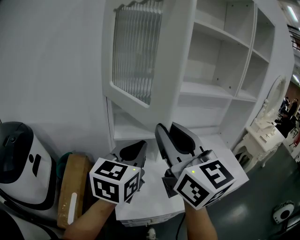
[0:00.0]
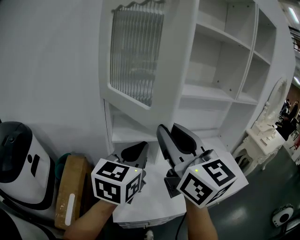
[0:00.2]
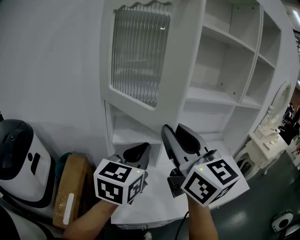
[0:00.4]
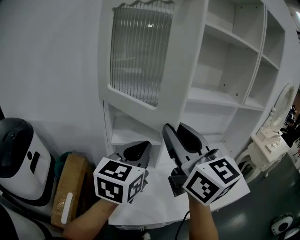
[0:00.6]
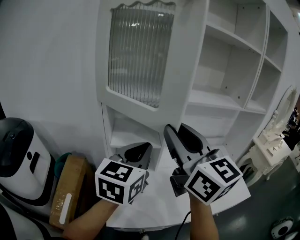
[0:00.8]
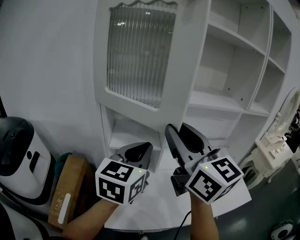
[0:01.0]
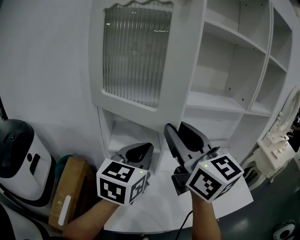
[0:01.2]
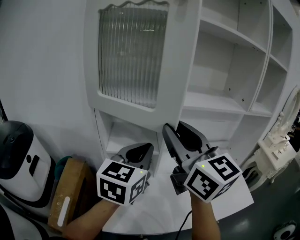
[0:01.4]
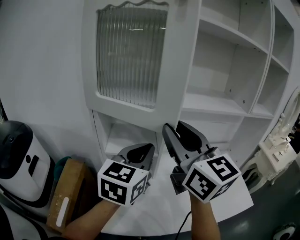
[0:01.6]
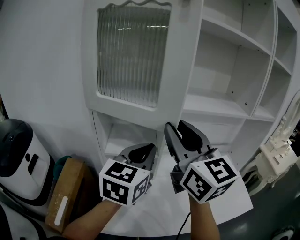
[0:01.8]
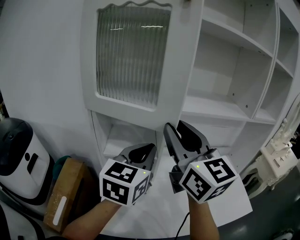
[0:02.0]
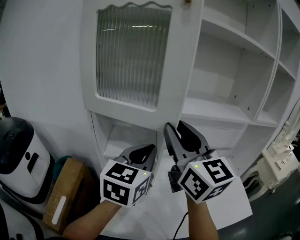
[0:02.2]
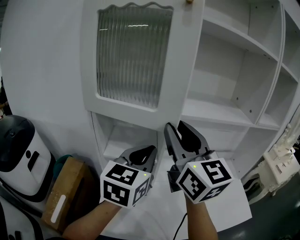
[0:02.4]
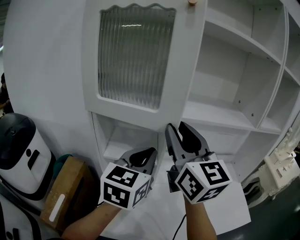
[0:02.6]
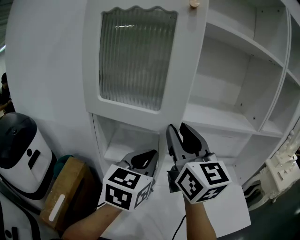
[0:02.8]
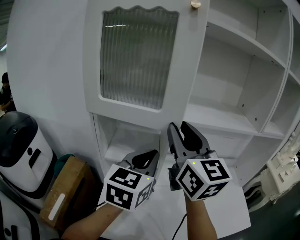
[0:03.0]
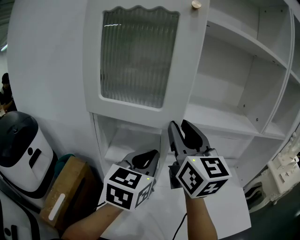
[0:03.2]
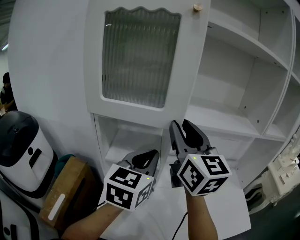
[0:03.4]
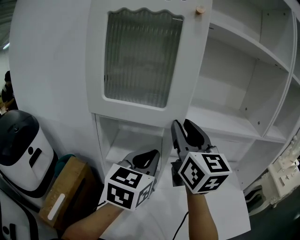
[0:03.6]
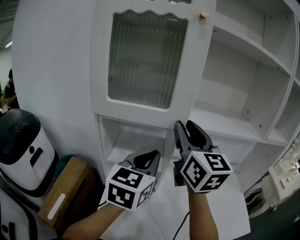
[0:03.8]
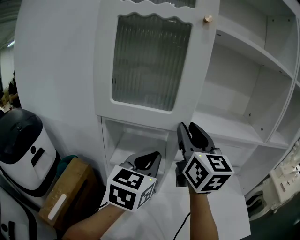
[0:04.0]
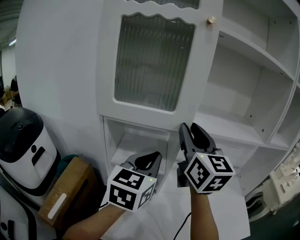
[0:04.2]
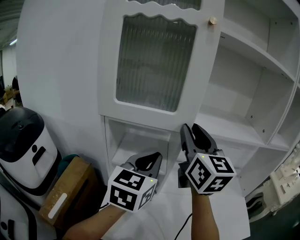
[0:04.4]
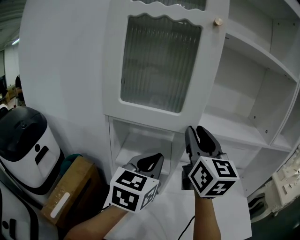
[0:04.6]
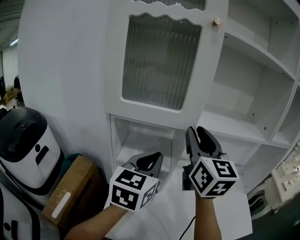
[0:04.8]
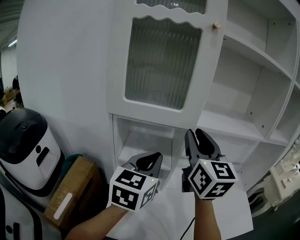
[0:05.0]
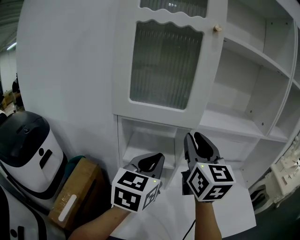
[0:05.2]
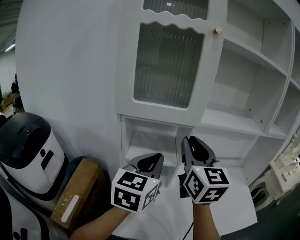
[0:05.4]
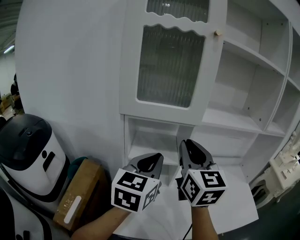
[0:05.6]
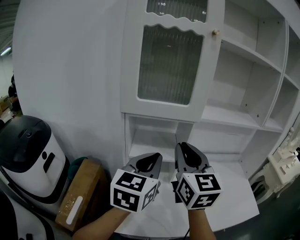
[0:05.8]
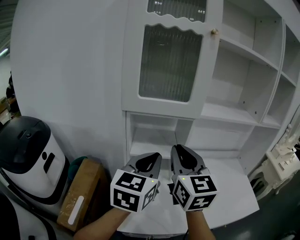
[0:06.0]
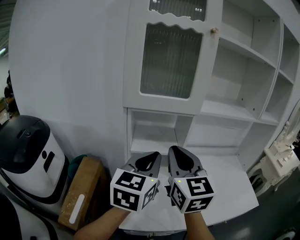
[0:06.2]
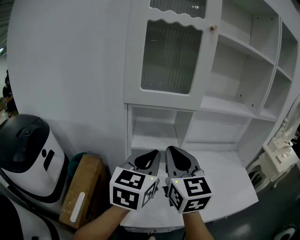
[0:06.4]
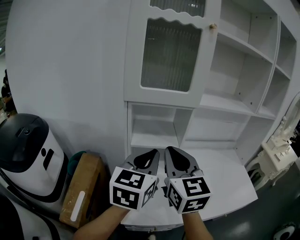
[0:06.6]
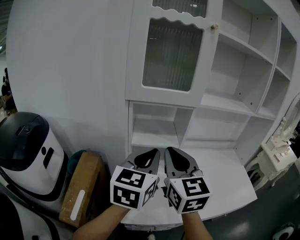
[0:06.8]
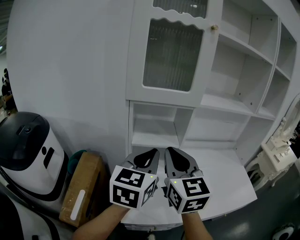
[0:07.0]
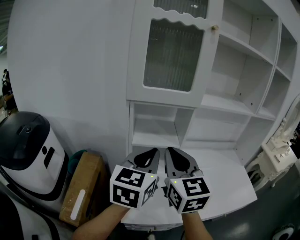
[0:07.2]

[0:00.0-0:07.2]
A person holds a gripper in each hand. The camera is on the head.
0:00.0 to 0:01.4: Both grippers travel together forward and to the right, approximately 10 cm.
0:01.4 to 0:02.8: The left gripper ends up about 5 cm from where it was. Meanwhile the right gripper moves forward, roughly 10 cm.
0:02.8 to 0:04.4: The grippers make only small movements.
0:04.4 to 0:05.8: The right gripper goes some 15 cm backward, to the left and downward; the left gripper travels backward and to the left by approximately 10 cm.
0:05.8 to 0:07.2: The right gripper moves backward, roughly 5 cm, while the left gripper changes place by about 5 cm.

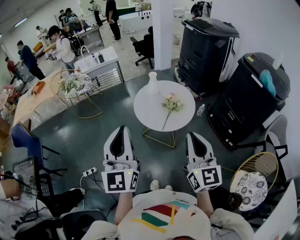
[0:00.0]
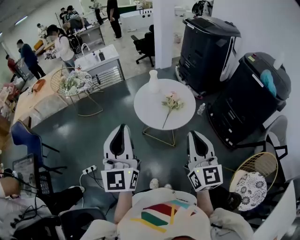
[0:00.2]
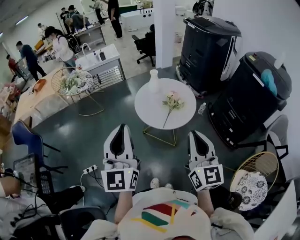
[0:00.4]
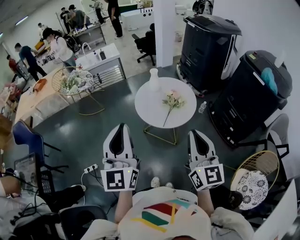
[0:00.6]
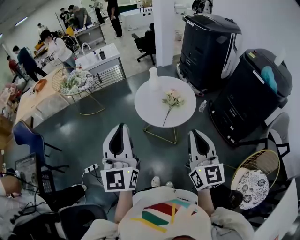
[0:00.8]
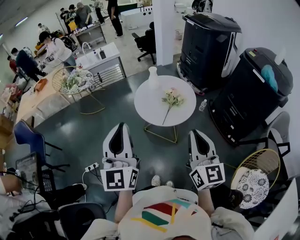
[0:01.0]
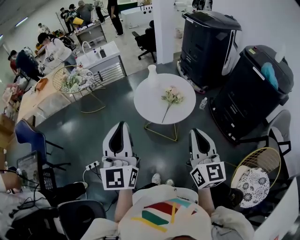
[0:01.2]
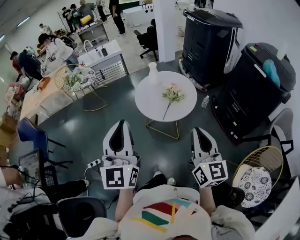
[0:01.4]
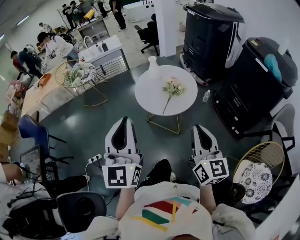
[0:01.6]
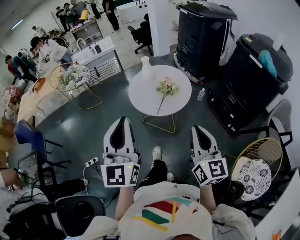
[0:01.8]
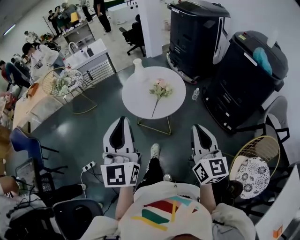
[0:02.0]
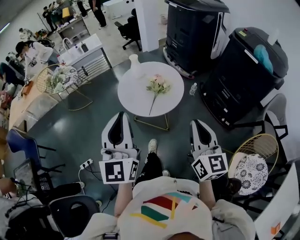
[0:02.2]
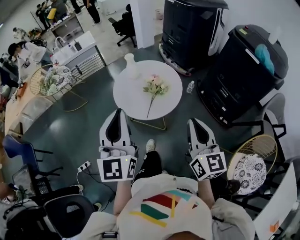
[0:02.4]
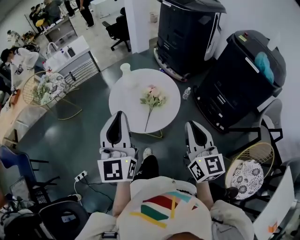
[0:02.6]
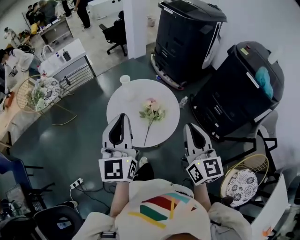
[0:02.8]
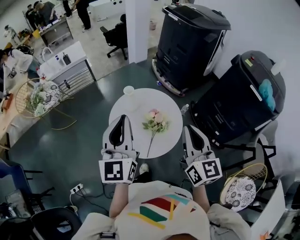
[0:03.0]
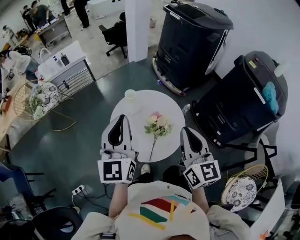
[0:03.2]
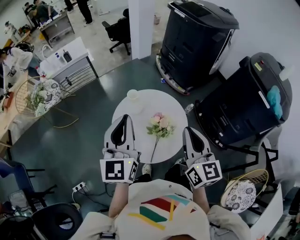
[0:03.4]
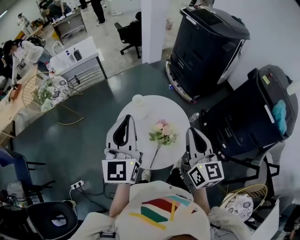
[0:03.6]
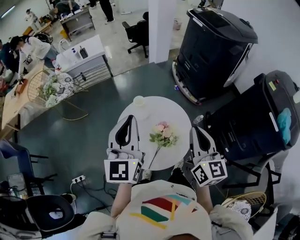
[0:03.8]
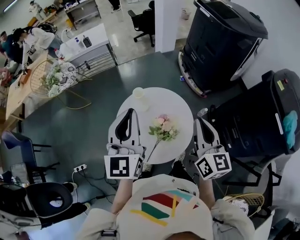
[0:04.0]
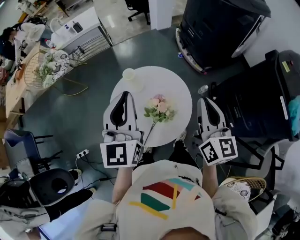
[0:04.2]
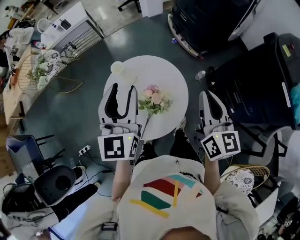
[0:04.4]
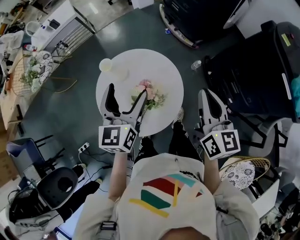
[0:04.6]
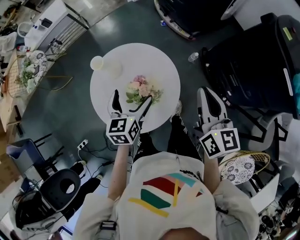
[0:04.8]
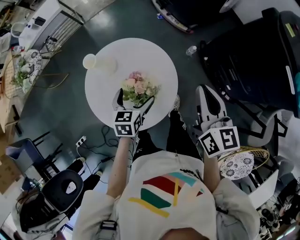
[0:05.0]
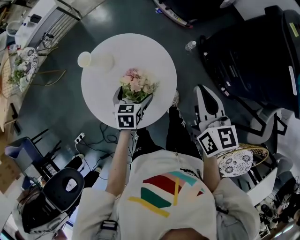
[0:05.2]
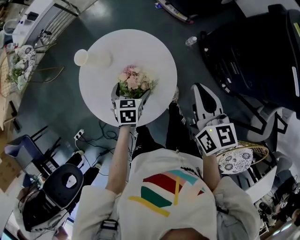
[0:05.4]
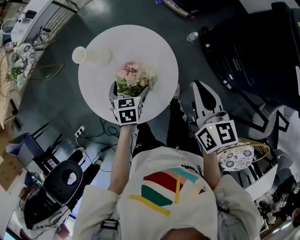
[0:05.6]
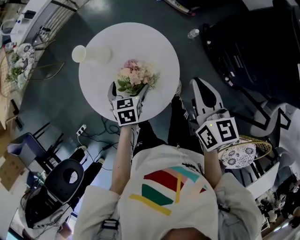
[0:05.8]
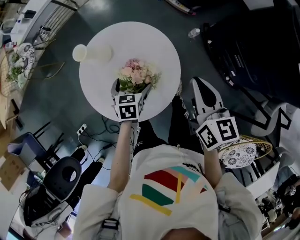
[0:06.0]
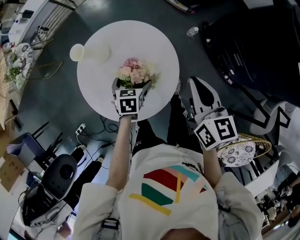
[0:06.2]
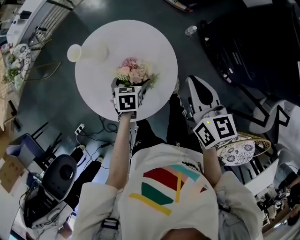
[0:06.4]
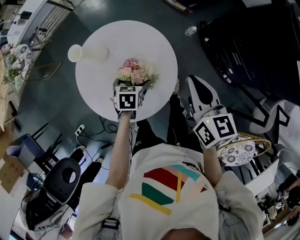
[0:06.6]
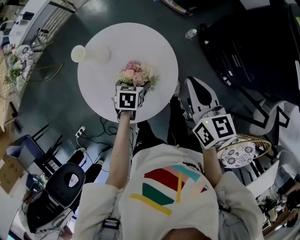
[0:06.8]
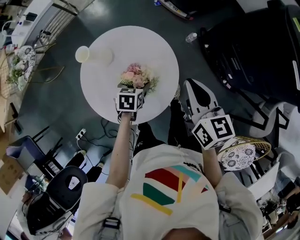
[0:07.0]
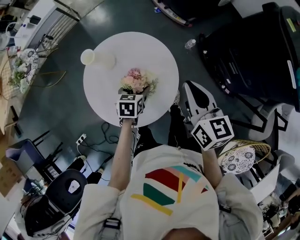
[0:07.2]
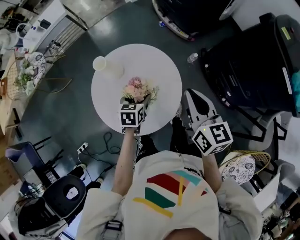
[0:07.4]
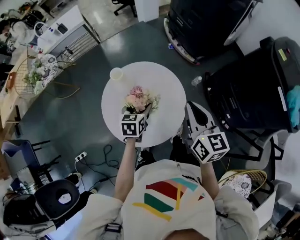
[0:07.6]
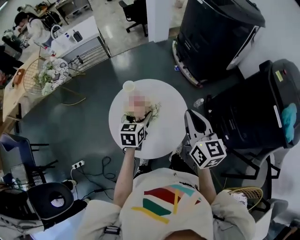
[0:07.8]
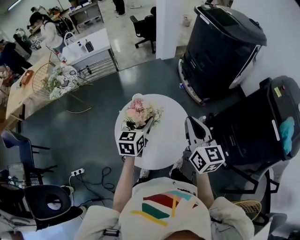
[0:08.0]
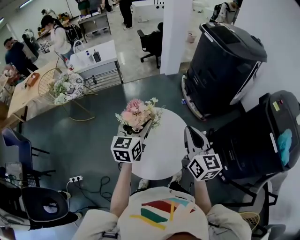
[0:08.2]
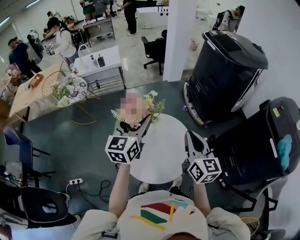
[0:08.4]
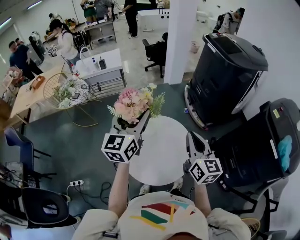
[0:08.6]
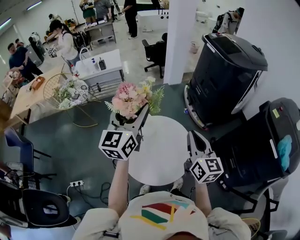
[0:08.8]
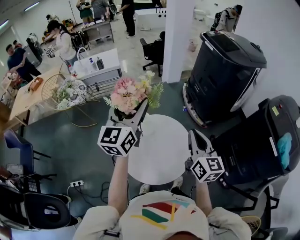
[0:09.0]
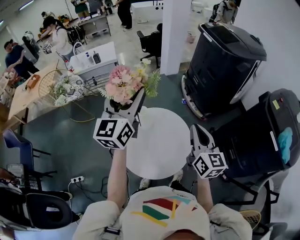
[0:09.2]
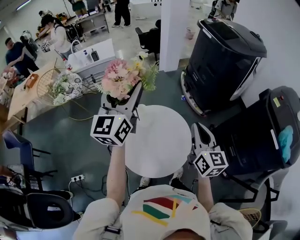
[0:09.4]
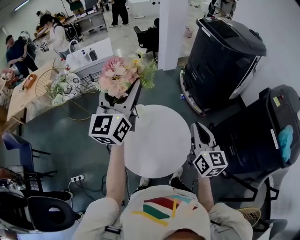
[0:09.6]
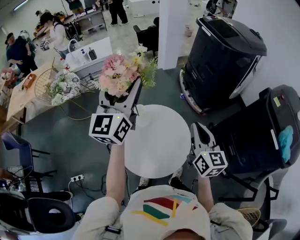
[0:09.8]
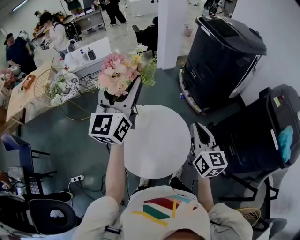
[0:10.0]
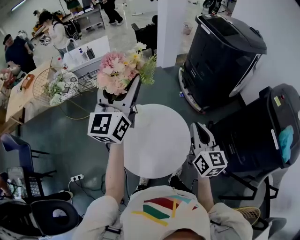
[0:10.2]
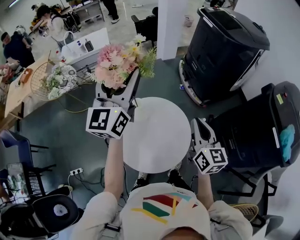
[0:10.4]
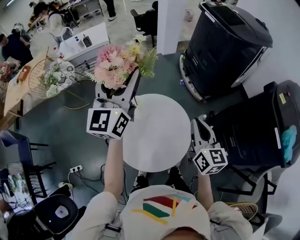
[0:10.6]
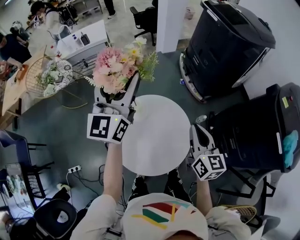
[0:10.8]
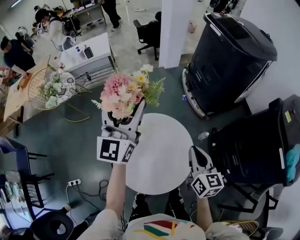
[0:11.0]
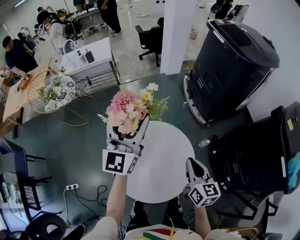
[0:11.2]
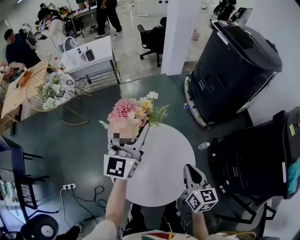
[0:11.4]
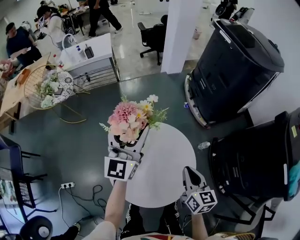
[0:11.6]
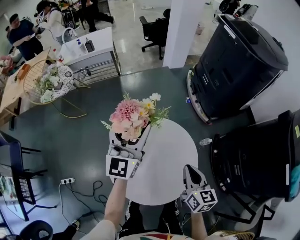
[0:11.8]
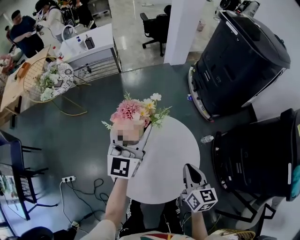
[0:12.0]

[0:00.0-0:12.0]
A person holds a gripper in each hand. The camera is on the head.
0:00.0 to 0:01.6: Both grippers move to the right, roughly 5 cm.
0:01.6 to 0:03.0: The grippers both shift forward by about 30 cm.
0:03.0 to 0:04.4: The grippers both shift forward, to the right and downward by roughly 20 cm.
0:04.4 to 0:06.0: The left gripper shifts about 35 cm downward, tips its fingers downward by about 50 degrees, and opens up. The right gripper shifts about 15 cm downward.
0:06.0 to 0:07.6: The right gripper is displaced upward and to the left by some 10 cm, while the left gripper goes approximately 10 cm upward, and closes.
0:07.6 to 0:09.0: The left gripper shifts roughly 40 cm upward, and tilts its fingers about 50 degrees upward, while the right gripper heads upward and to the left, covering some 10 cm.
0:09.0 to 0:10.4: The left gripper goes some 5 cm forward. Meanwhile the right gripper shifts by roughly 5 cm.
0:10.4 to 0:12.0: The grippers both shift downward by some 20 cm.

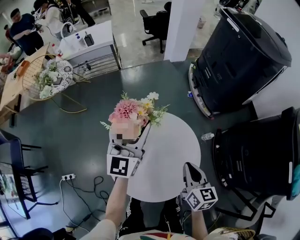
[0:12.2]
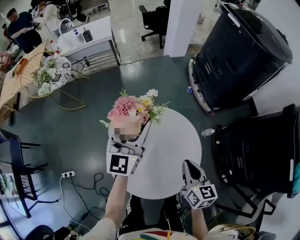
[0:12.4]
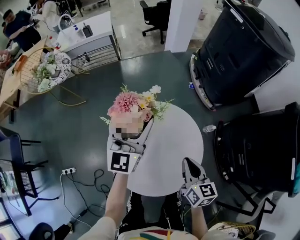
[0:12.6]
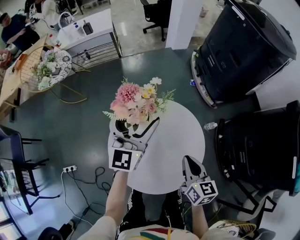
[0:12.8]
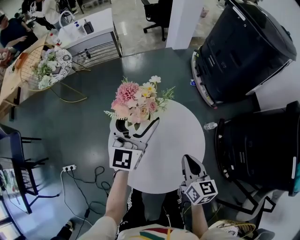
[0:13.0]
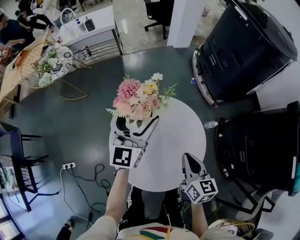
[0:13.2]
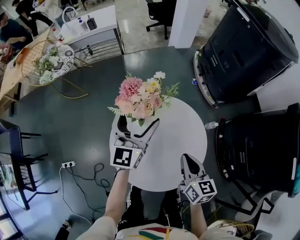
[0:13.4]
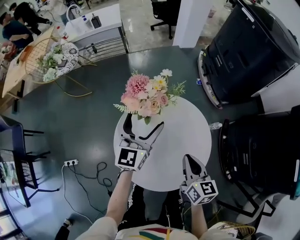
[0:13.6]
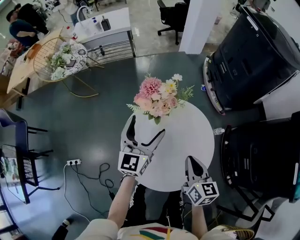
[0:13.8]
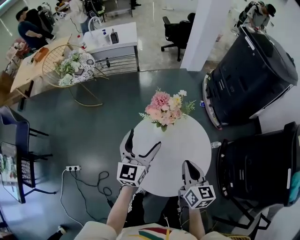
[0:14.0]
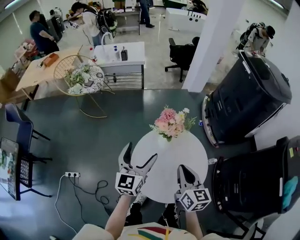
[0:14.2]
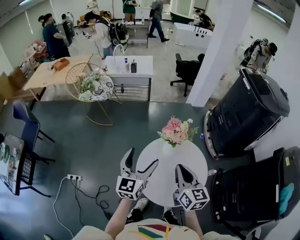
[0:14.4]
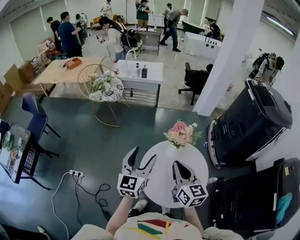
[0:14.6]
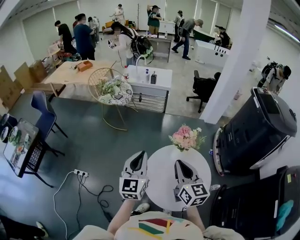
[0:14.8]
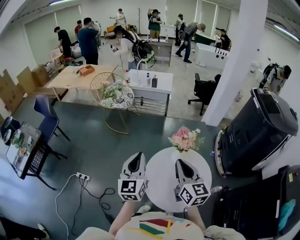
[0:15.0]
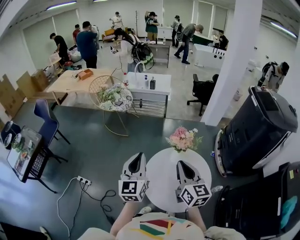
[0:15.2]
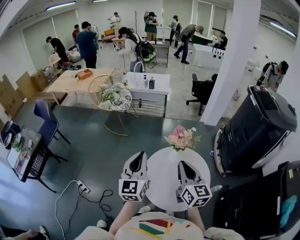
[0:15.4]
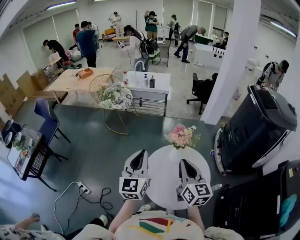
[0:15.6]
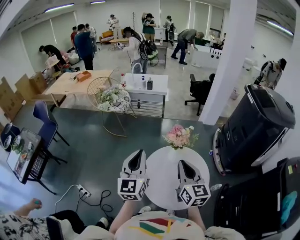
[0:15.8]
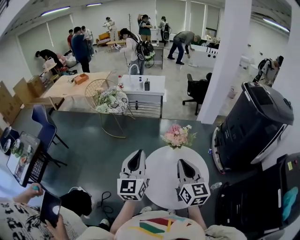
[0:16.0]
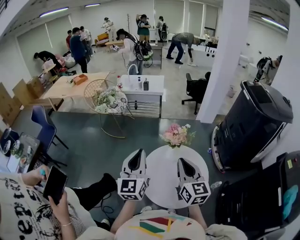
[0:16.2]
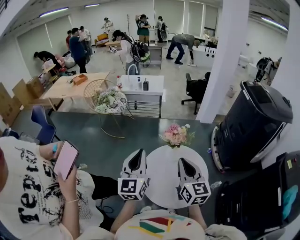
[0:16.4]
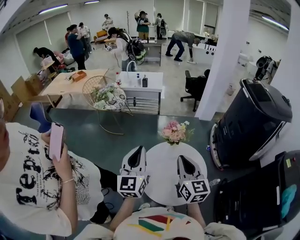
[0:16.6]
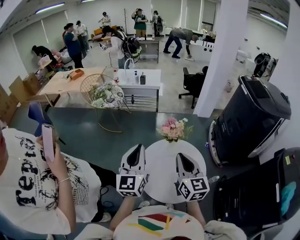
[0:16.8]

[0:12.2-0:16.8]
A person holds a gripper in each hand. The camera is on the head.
0:12.2 to 0:13.8: The right gripper travels to the left by some 5 cm. The left gripper moves downward and backward, some 10 cm.
0:13.8 to 0:15.2: The right gripper shifts roughly 25 cm upward and to the left, and turns by approximately 30 degrees. Meanwhile the left gripper travels upward, to the left and backward by some 30 cm, changes its angle by about 30 degrees, and closes its fingers.
0:15.2 to 0:16.8: The left gripper moves roughly 5 cm.
